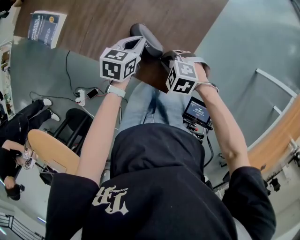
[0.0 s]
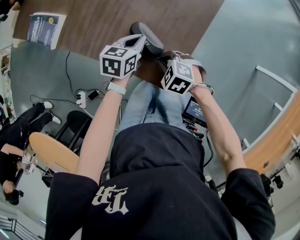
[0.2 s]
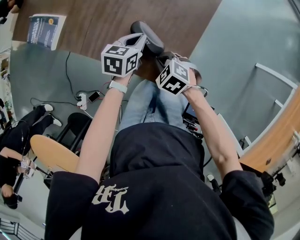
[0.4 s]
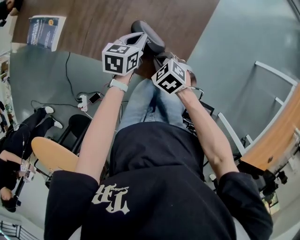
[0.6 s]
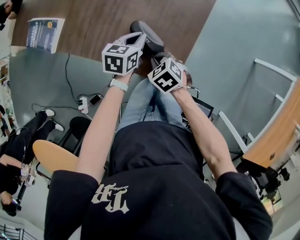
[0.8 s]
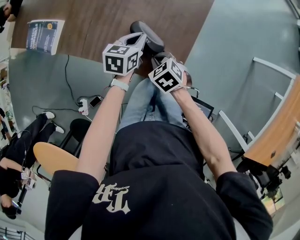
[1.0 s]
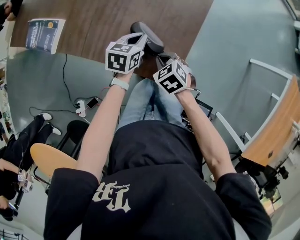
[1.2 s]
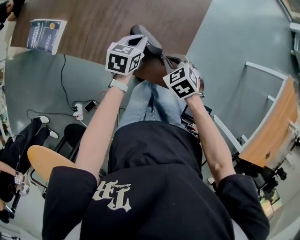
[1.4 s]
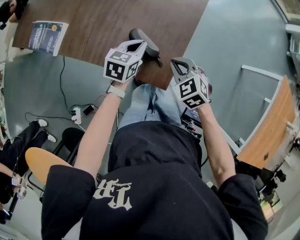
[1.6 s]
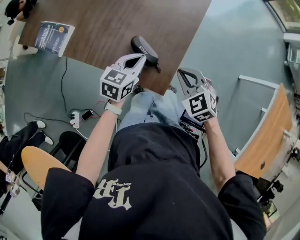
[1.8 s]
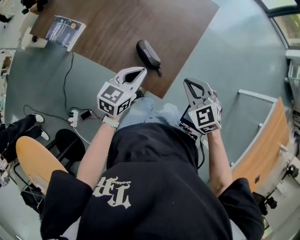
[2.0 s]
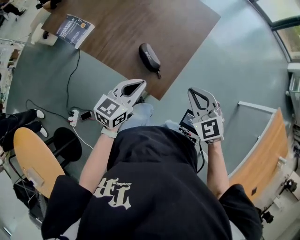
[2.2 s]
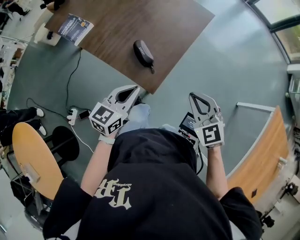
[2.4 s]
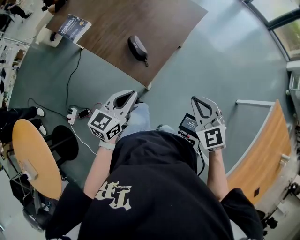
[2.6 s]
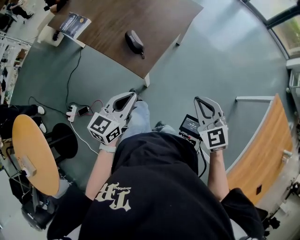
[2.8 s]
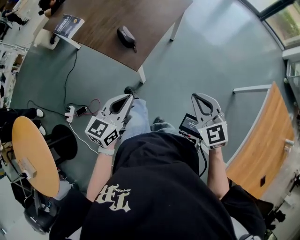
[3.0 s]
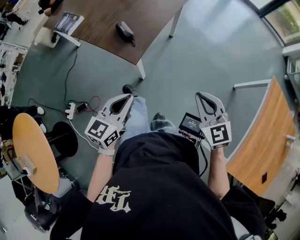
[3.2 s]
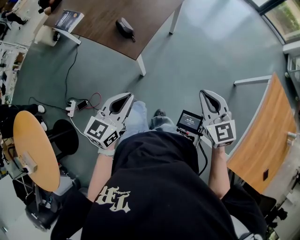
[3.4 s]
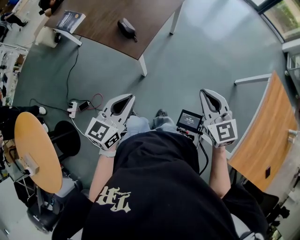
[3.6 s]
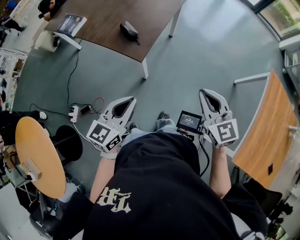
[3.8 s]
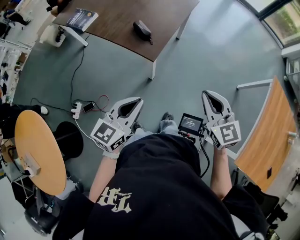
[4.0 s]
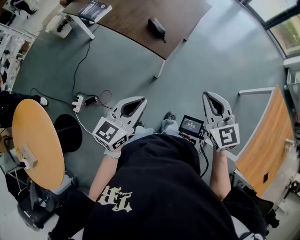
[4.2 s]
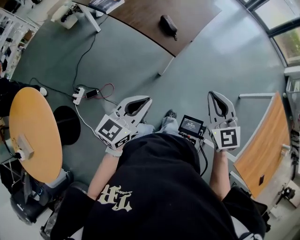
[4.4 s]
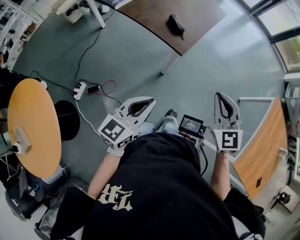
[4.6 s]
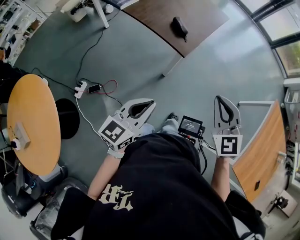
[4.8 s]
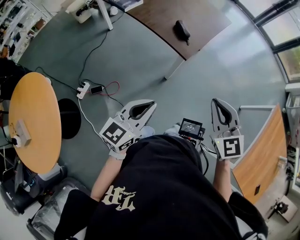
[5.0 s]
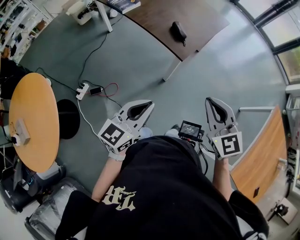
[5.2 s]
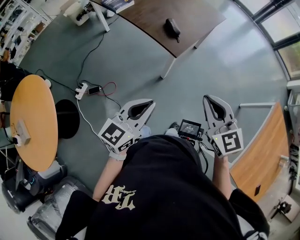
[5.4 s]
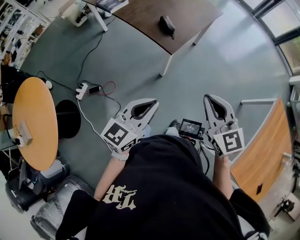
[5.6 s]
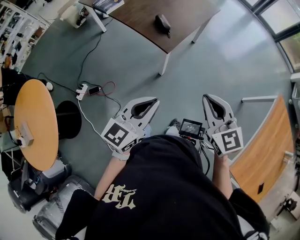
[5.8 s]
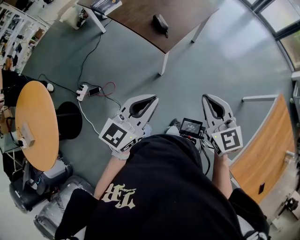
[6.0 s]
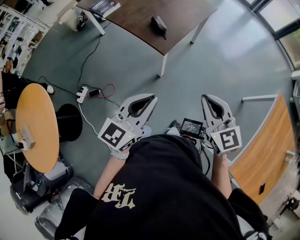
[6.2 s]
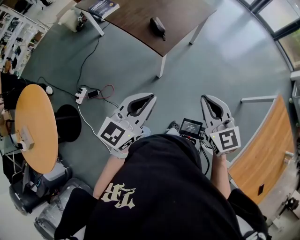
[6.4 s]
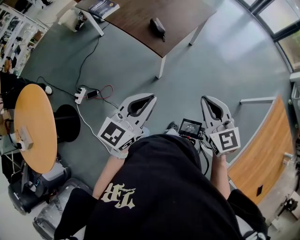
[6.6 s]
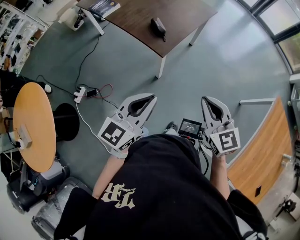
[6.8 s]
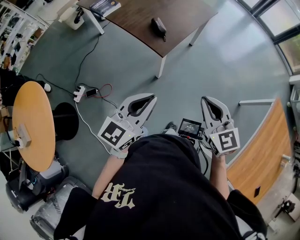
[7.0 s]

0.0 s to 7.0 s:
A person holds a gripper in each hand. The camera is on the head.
0.0 to 1.4 s: The right gripper goes some 5 cm upward, and turns by about 40 degrees.
1.4 to 2.8 s: The right gripper shifts some 40 cm to the right, backward and upward, and angles its fingers upward, by some 30 degrees, while the left gripper heads backward and upward, covering some 40 cm, and rotates some 30 degrees.
2.8 to 4.2 s: The right gripper is displaced backward, to the left and upward by approximately 20 cm. Meanwhile the left gripper goes about 20 cm backward.
4.2 to 5.6 s: Both grippers travel together backward, approximately 5 cm. The right gripper moves about 10 cm to the left and comes back.
5.6 to 7.0 s: The right gripper travels to the right by approximately 5 cm, while the left gripper ends up approximately 5 cm from where it was.

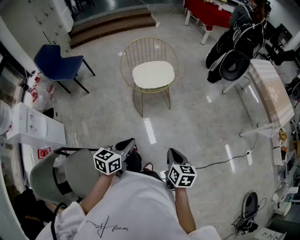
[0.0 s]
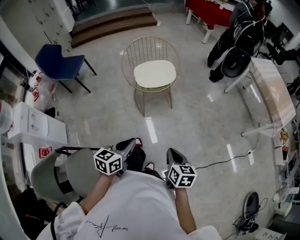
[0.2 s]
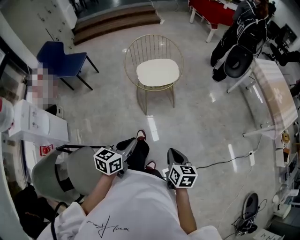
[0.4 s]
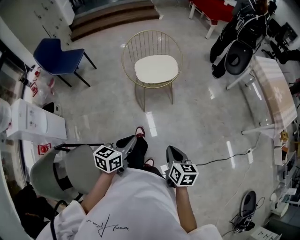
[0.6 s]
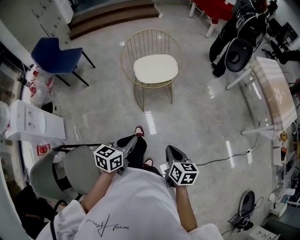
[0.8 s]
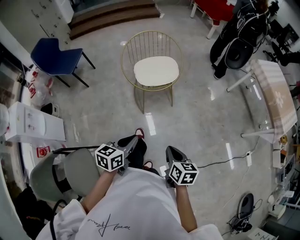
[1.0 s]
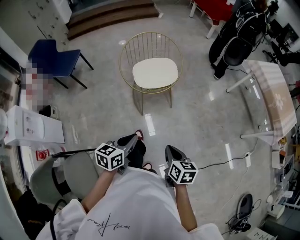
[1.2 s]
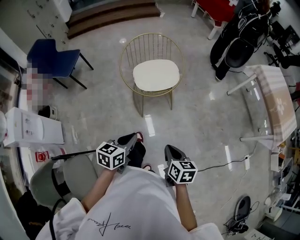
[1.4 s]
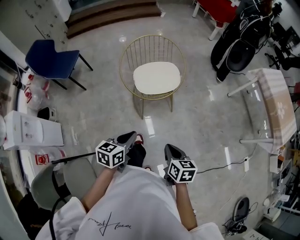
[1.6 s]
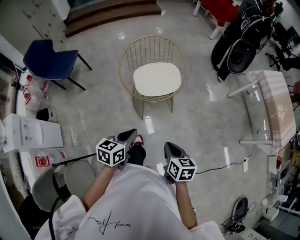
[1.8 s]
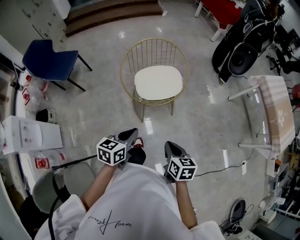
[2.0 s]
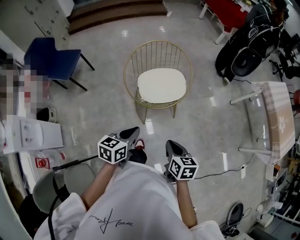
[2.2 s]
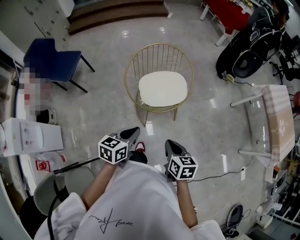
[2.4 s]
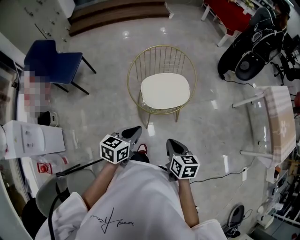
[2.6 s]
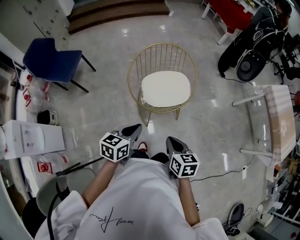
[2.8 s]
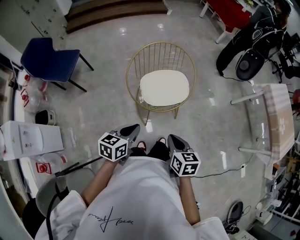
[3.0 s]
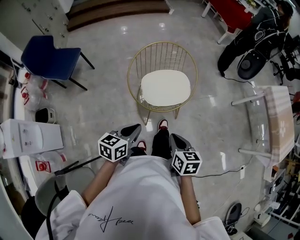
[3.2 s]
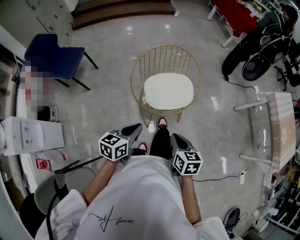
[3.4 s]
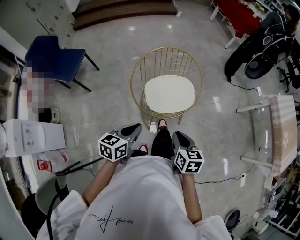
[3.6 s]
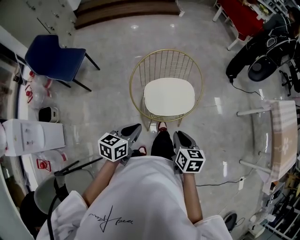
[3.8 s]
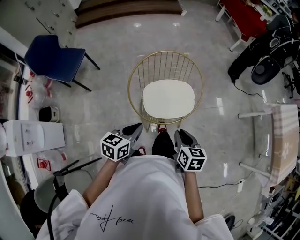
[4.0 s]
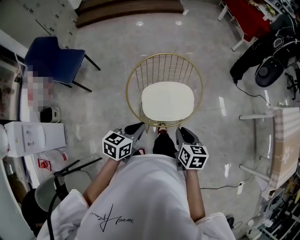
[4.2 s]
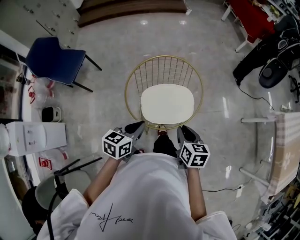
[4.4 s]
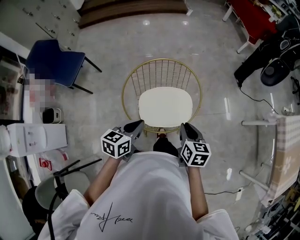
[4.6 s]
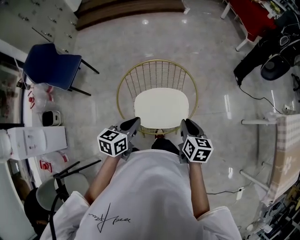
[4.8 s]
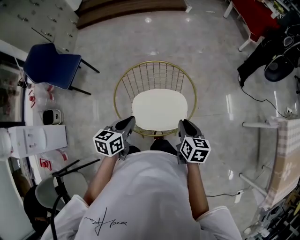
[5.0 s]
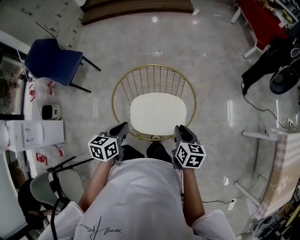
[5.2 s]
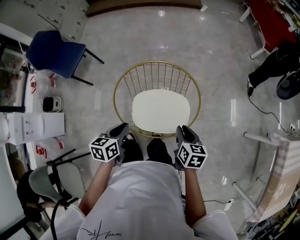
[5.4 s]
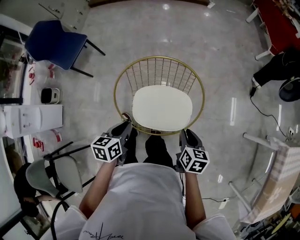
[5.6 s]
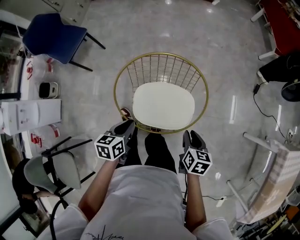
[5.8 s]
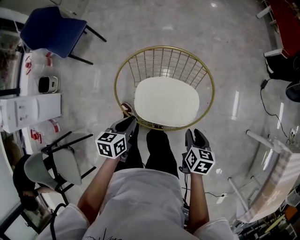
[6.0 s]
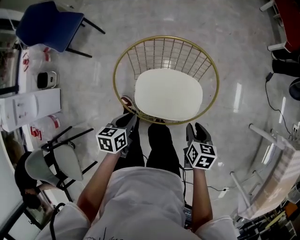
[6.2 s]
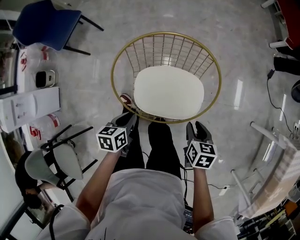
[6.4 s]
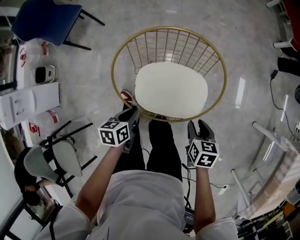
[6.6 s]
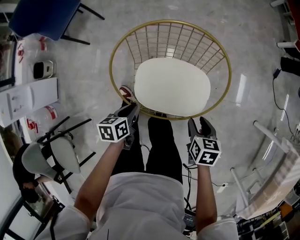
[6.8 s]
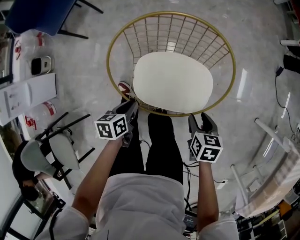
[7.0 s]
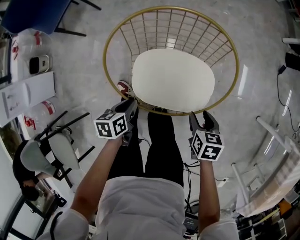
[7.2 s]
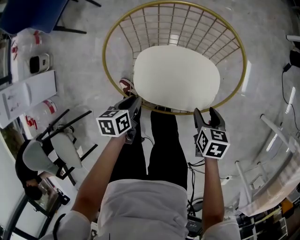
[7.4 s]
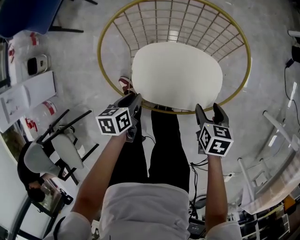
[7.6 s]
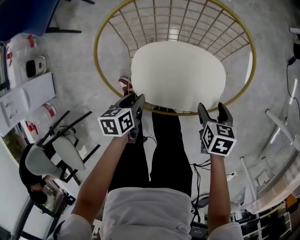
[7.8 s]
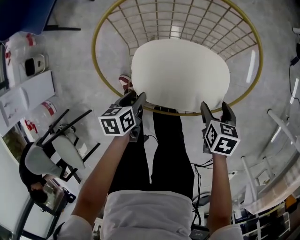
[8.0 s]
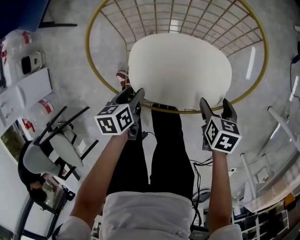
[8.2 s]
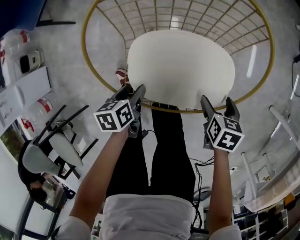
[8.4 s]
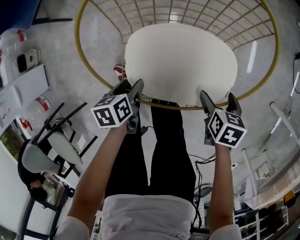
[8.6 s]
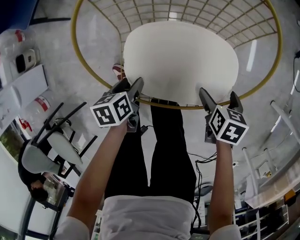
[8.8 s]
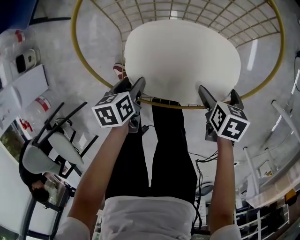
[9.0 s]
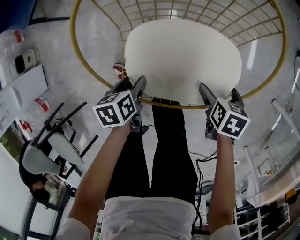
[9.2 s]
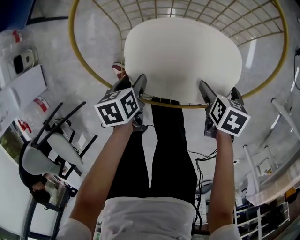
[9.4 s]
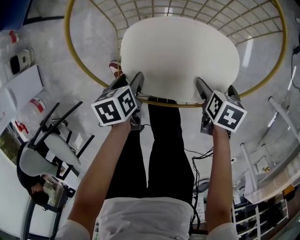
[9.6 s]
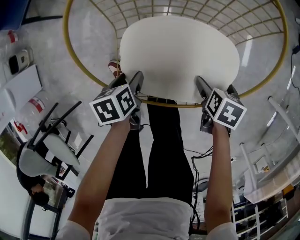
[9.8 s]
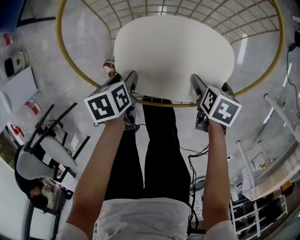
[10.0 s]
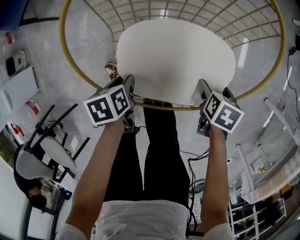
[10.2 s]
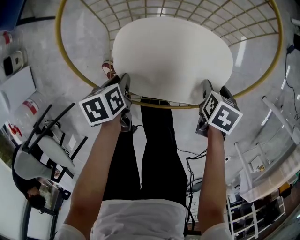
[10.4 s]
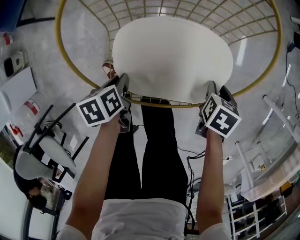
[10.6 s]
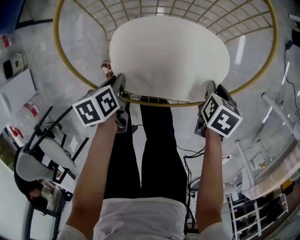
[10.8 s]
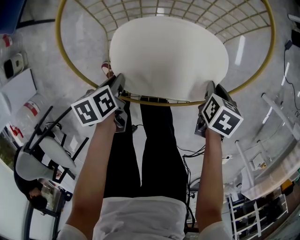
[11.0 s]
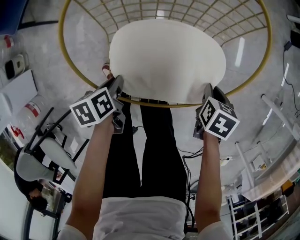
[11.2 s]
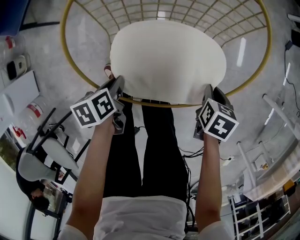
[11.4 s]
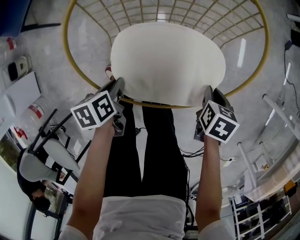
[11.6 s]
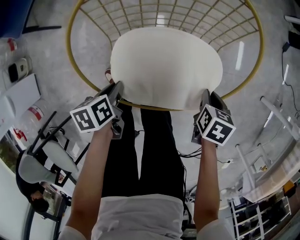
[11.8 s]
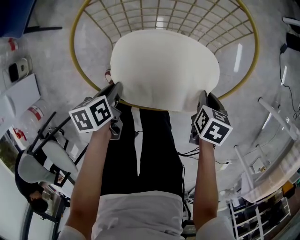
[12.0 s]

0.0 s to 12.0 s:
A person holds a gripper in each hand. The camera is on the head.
0.0 to 1.6 s: The two grippers go approximately 20 cm forward.
1.6 to 3.0 s: Both grippers move forward and to the left, approximately 20 cm.
3.0 to 4.4 s: Both grippers travel together forward, about 20 cm.
4.4 to 6.0 s: The right gripper heads downward, forward and to the right, covering roughly 20 cm. Meanwhile the left gripper moves downward and forward, roughly 15 cm, and changes its angle by approximately 30 degrees.
6.0 to 7.6 s: The grippers both shift downward by some 15 cm.
7.6 to 9.0 s: The two grippers go some 10 cm downward. The right gripper opens; the left gripper opens.
9.0 to 10.4 s: The left gripper closes. Meanwhile the right gripper closes up.
10.4 to 12.0 s: The grippers both shift upward by about 5 cm.

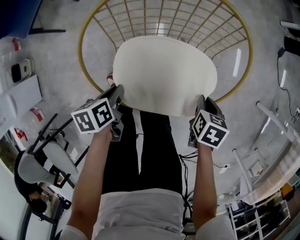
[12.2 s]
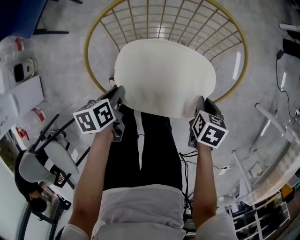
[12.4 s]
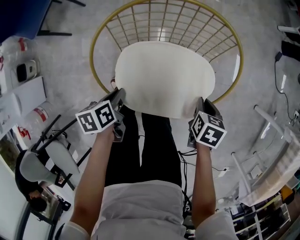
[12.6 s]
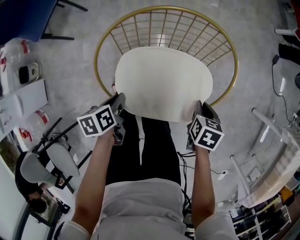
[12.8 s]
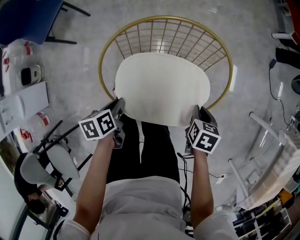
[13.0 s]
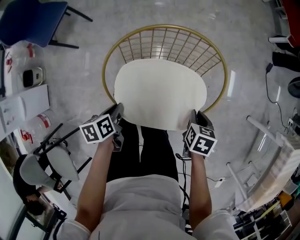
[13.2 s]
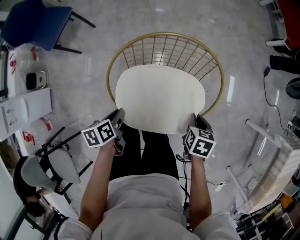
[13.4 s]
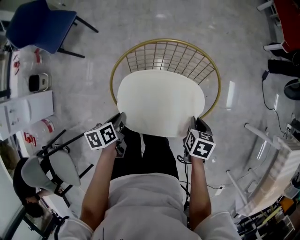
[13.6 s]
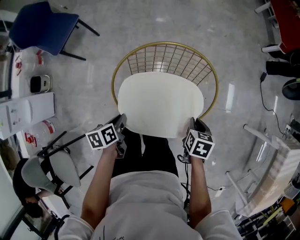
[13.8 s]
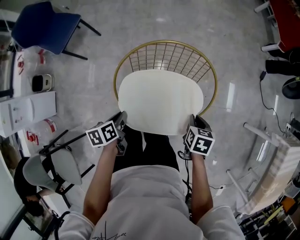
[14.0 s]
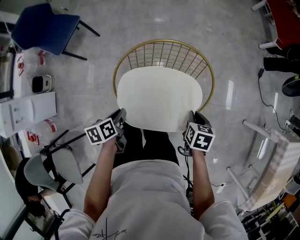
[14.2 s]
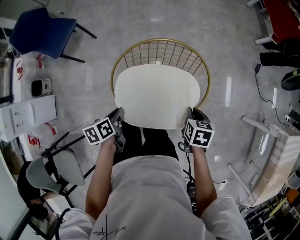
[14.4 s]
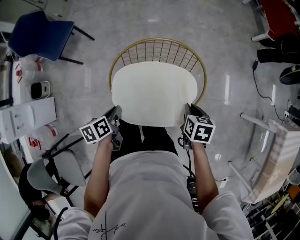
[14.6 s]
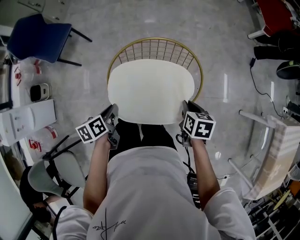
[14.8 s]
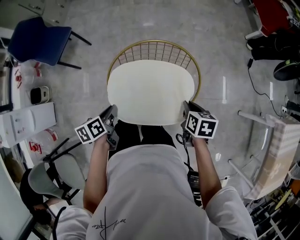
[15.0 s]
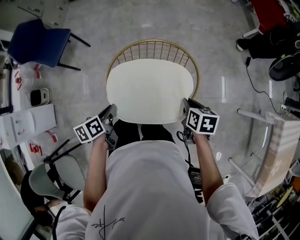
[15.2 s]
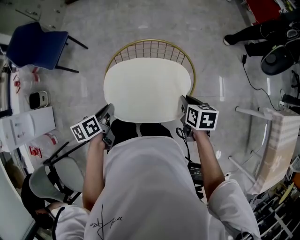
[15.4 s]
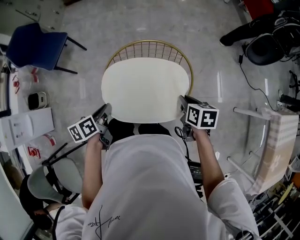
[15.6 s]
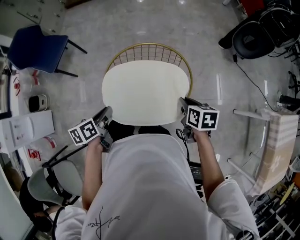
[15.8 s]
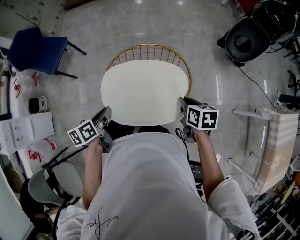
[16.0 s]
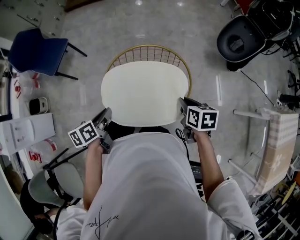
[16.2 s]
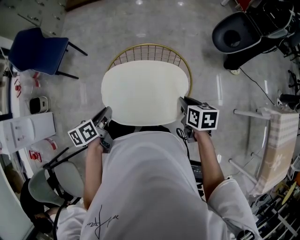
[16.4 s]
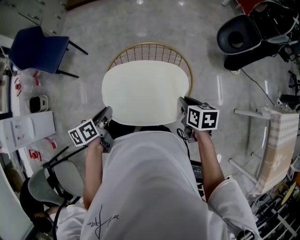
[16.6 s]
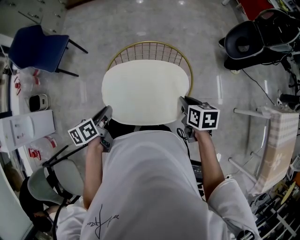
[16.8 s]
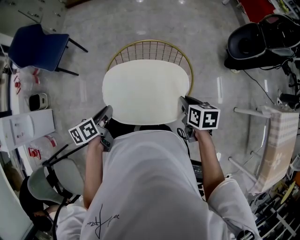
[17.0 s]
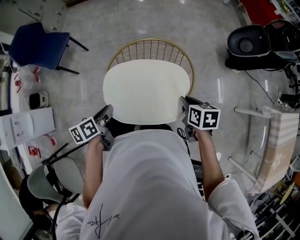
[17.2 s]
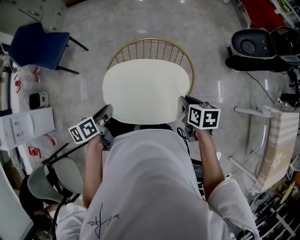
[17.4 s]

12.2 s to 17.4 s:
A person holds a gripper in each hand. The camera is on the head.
12.2 to 14.0 s: The two grippers go some 15 cm upward.
14.0 to 15.6 s: The two grippers go some 10 cm upward.
15.6 to 17.4 s: The grippers stay close to where they were, moving slightly.
